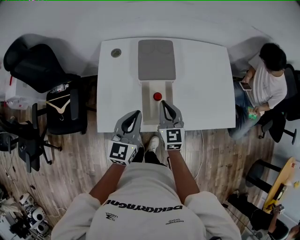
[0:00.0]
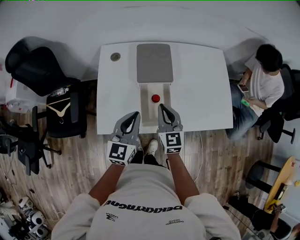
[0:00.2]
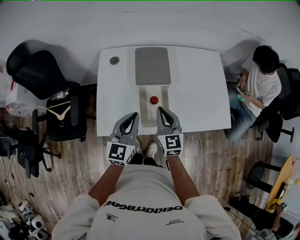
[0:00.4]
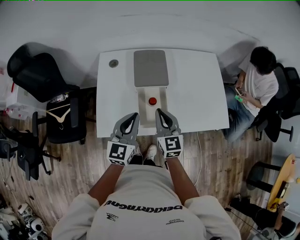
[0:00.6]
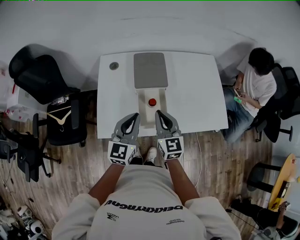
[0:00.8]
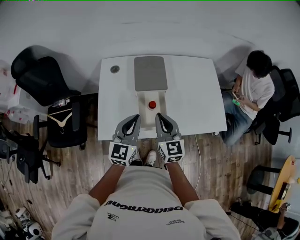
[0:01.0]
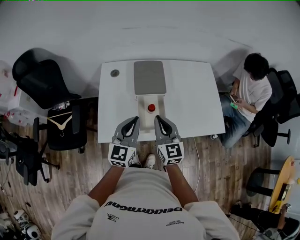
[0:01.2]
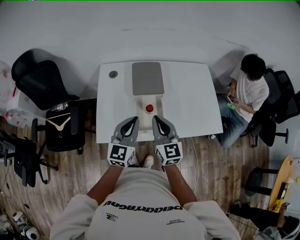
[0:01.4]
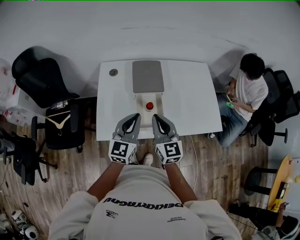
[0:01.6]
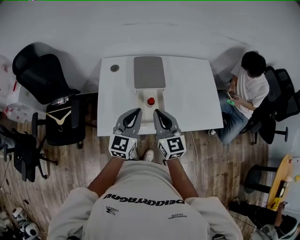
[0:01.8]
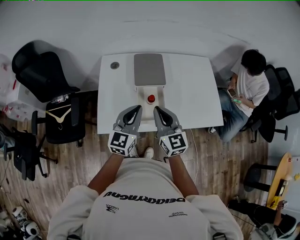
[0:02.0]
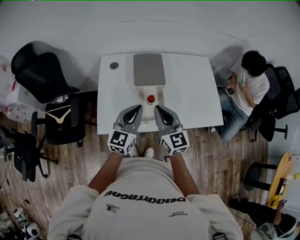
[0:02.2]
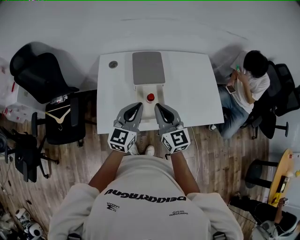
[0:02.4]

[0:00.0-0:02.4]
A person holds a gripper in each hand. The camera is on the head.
0:00.0 to 0:01.2: The left gripper goes roughly 5 cm upward; the right gripper heads upward and backward, covering roughly 10 cm.
0:01.2 to 0:02.4: The grippers stay close to where they were, moving slightly.

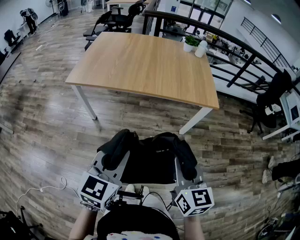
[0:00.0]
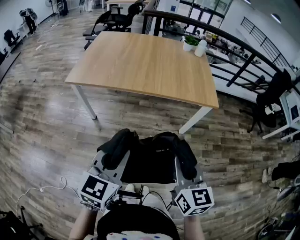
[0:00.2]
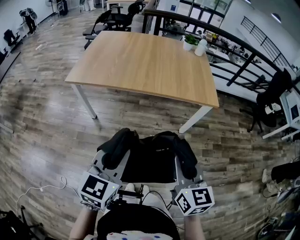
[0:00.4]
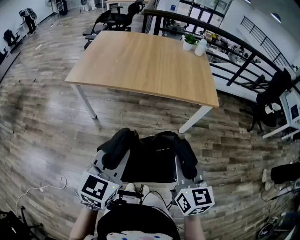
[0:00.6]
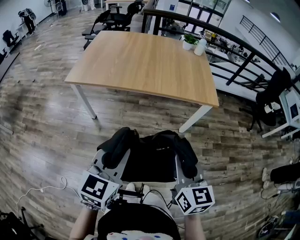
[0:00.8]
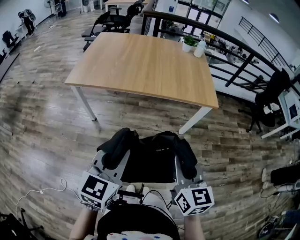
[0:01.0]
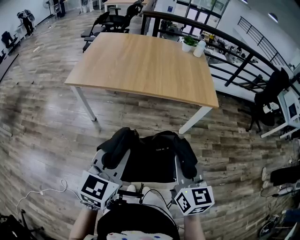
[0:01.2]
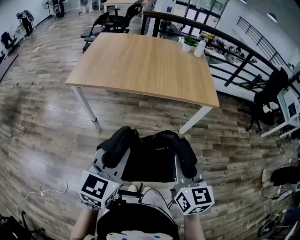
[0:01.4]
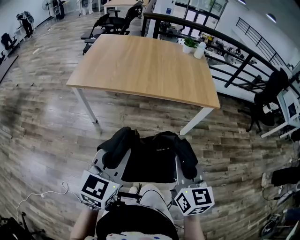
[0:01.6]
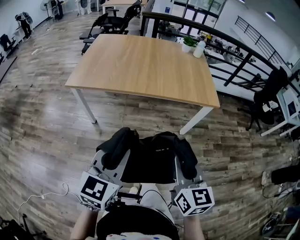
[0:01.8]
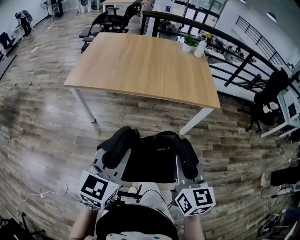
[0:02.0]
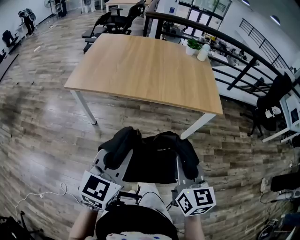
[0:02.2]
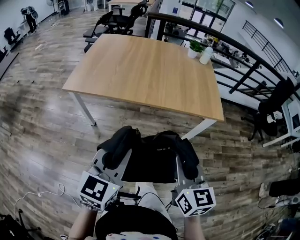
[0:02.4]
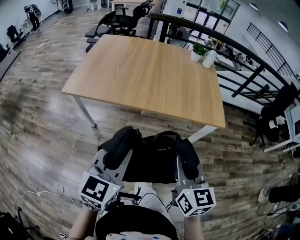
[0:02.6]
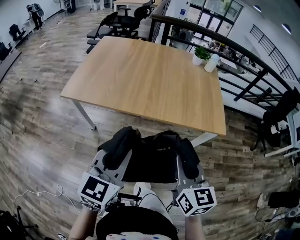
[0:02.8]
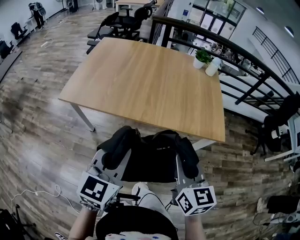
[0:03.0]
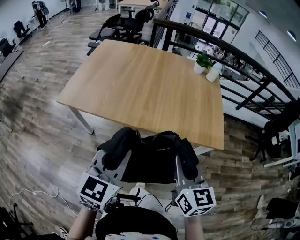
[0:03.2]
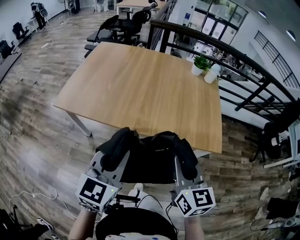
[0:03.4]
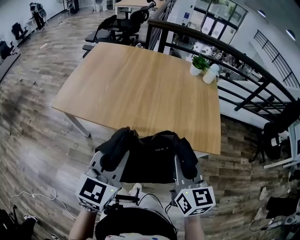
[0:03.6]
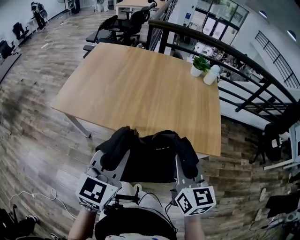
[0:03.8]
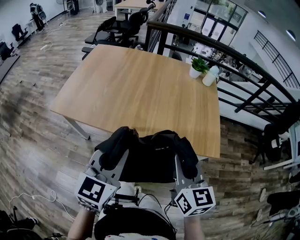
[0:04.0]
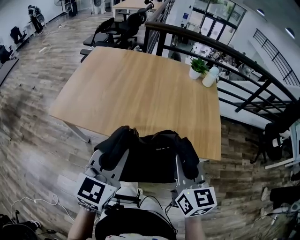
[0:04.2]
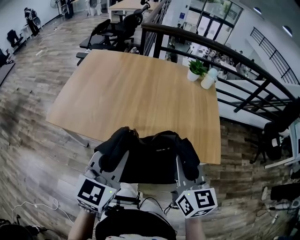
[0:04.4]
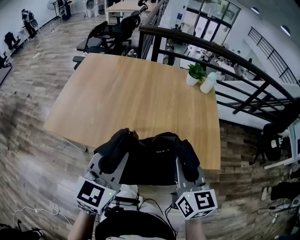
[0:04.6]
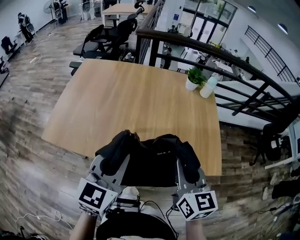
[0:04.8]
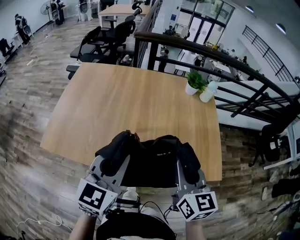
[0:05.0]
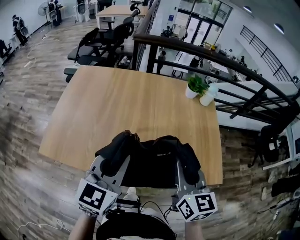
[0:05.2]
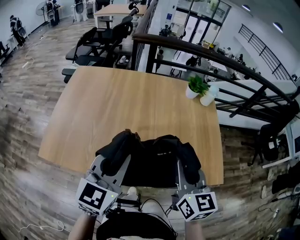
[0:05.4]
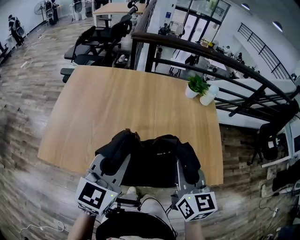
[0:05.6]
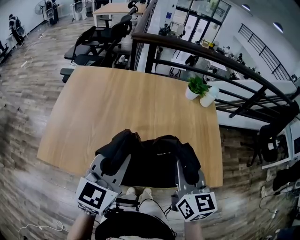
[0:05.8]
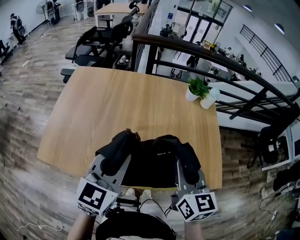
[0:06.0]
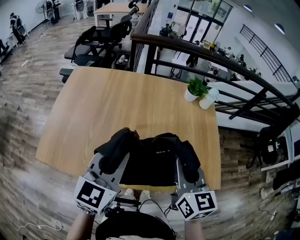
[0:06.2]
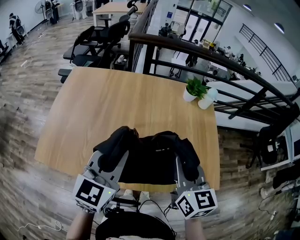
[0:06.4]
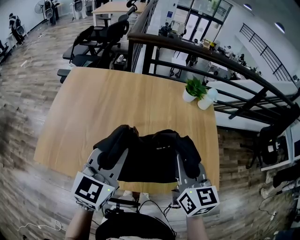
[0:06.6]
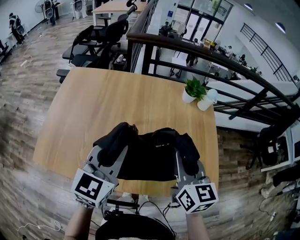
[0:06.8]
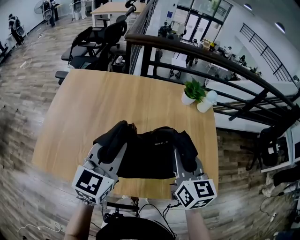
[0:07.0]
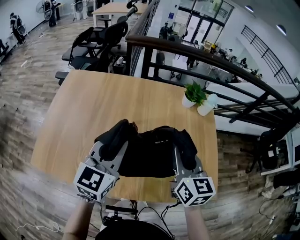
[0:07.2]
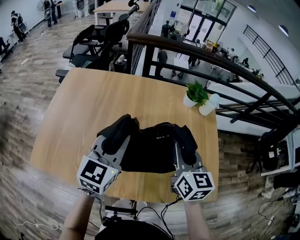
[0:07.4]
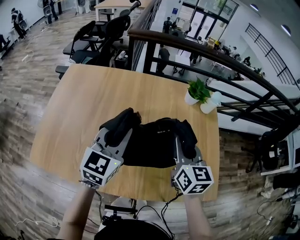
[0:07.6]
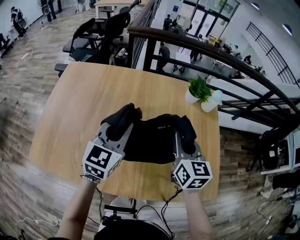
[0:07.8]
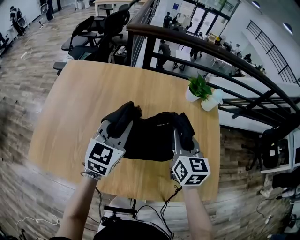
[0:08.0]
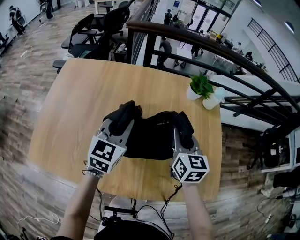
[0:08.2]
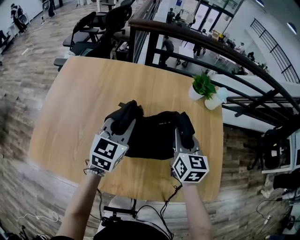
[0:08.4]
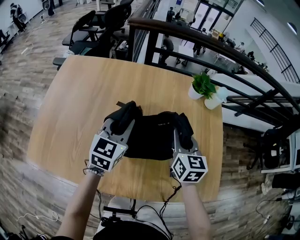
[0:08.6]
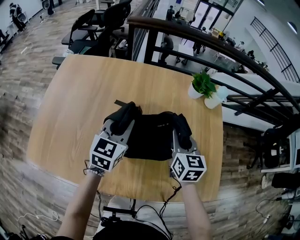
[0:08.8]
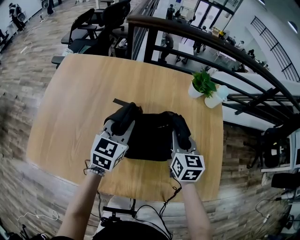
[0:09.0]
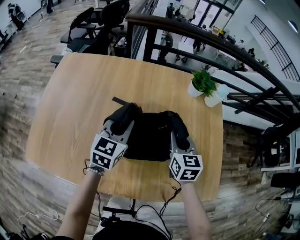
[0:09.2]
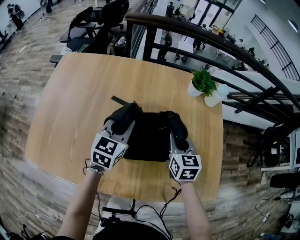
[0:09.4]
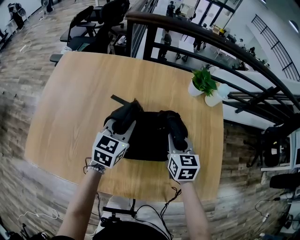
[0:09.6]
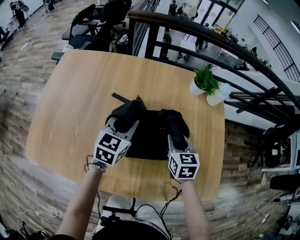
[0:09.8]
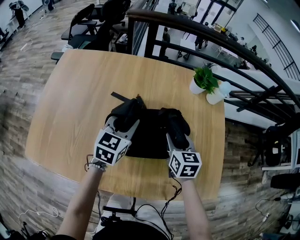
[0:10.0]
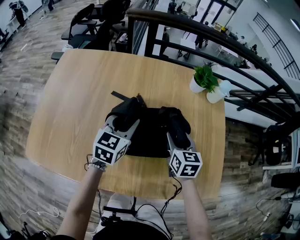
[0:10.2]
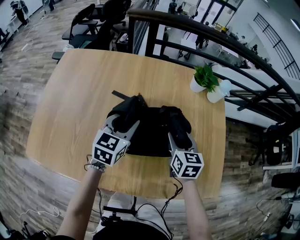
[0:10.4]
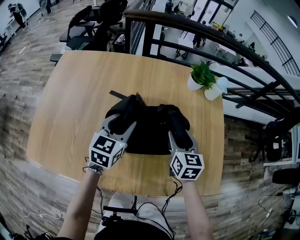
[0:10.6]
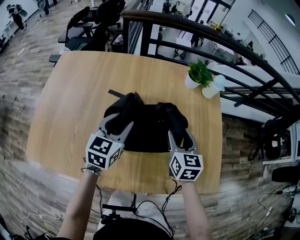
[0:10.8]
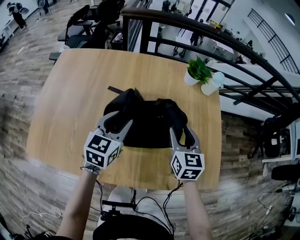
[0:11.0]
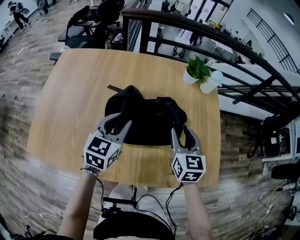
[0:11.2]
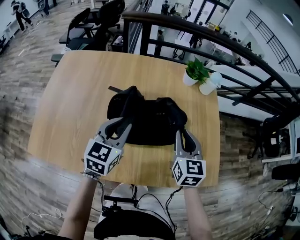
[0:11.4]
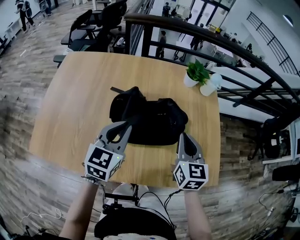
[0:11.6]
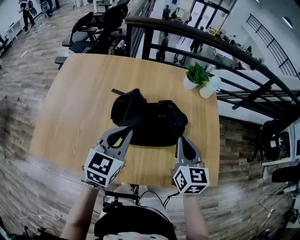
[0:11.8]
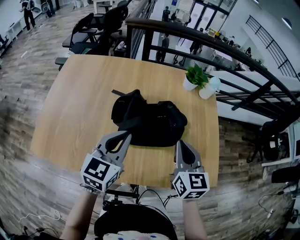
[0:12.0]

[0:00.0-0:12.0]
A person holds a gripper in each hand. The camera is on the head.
0:00.0 to 0:01.6: The grippers move only a little.
0:01.6 to 0:03.0: The grippers both shift forward by roughly 25 cm.
0:03.0 to 0:04.4: Both grippers move forward, roughly 15 cm.
0:04.4 to 0:06.0: Both grippers travel together forward, about 20 cm.
0:06.0 to 0:07.6: Both grippers travel together forward, some 15 cm.
0:07.6 to 0:09.0: The two grippers go about 10 cm downward and forward.
0:09.0 to 0:10.4: The right gripper ends up roughly 5 cm from where it was, and opens up. The left gripper opens.
0:10.4 to 0:12.0: The left gripper moves backward and upward, about 15 cm, and closes up, while the right gripper moves upward and backward, roughly 20 cm, and closes.

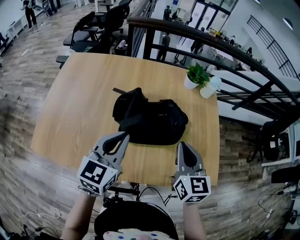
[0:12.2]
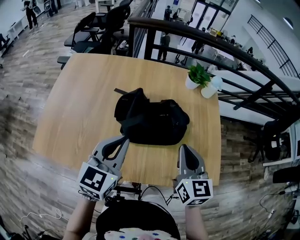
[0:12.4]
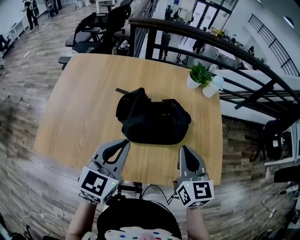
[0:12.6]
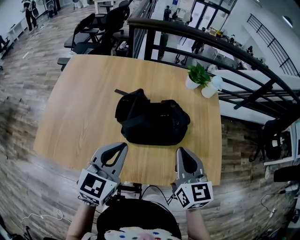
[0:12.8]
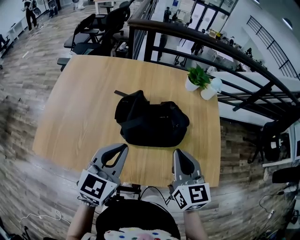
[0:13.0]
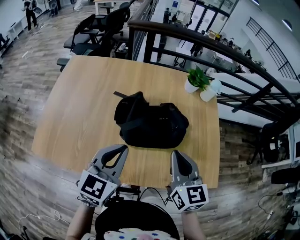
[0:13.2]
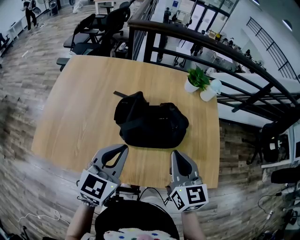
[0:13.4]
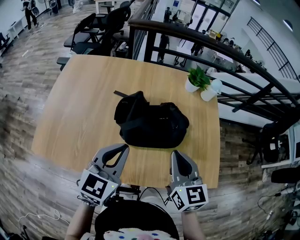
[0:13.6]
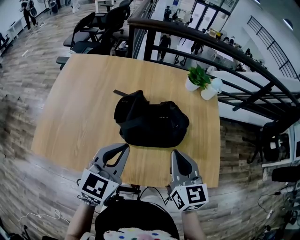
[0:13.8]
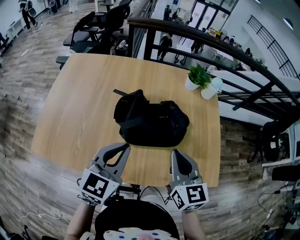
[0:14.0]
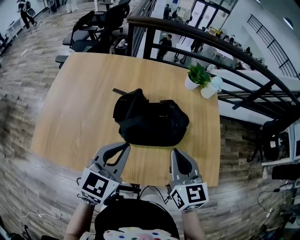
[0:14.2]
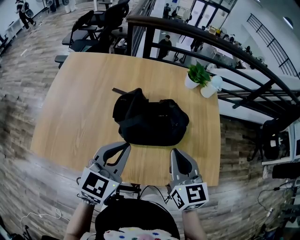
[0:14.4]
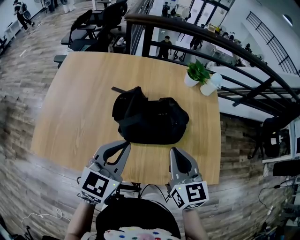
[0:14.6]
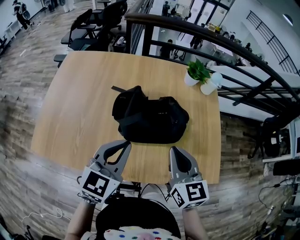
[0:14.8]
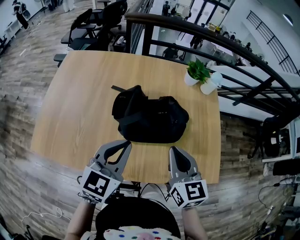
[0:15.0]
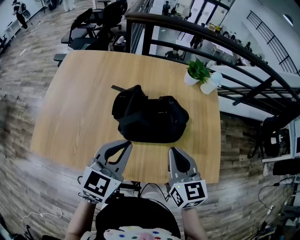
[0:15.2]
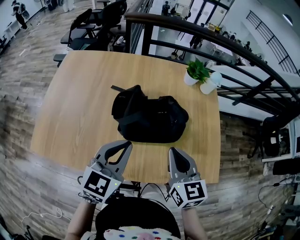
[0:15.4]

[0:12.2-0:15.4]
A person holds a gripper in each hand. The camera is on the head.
0:12.2 to 0:15.4: The grippers stay close to where they were, moving slightly.

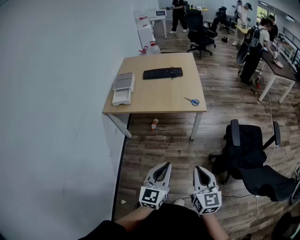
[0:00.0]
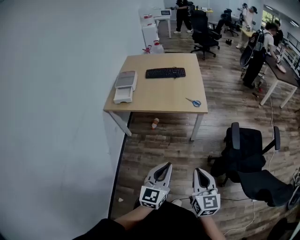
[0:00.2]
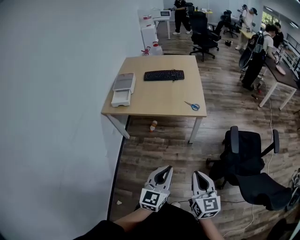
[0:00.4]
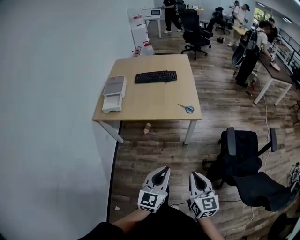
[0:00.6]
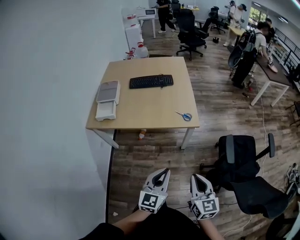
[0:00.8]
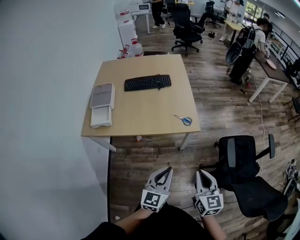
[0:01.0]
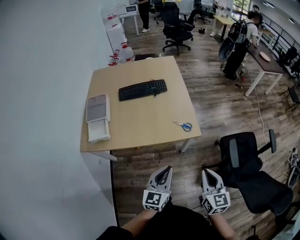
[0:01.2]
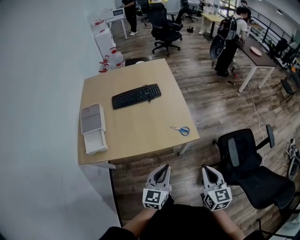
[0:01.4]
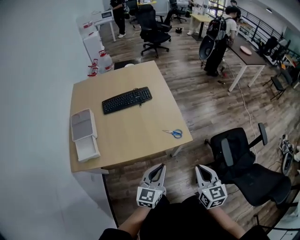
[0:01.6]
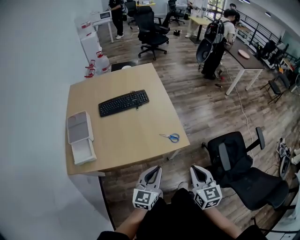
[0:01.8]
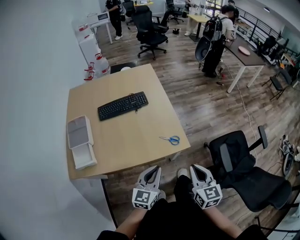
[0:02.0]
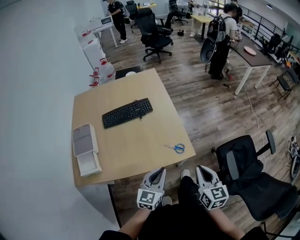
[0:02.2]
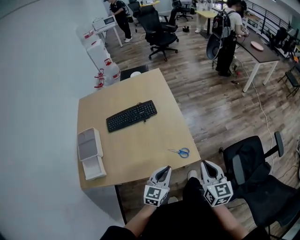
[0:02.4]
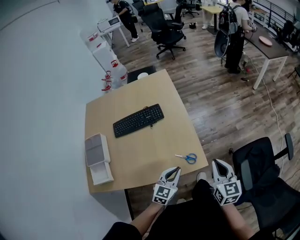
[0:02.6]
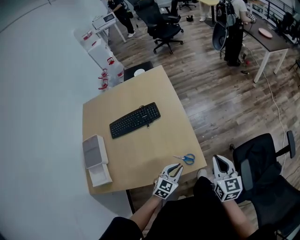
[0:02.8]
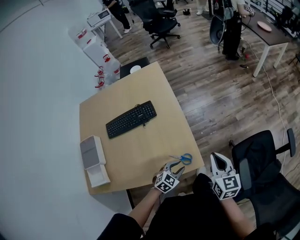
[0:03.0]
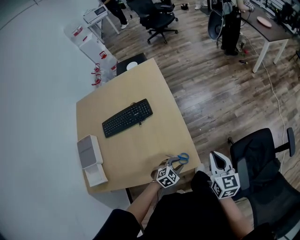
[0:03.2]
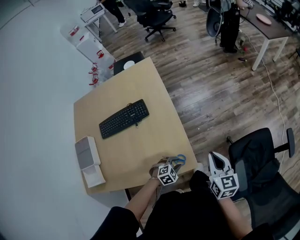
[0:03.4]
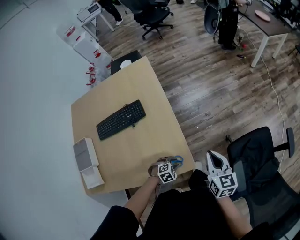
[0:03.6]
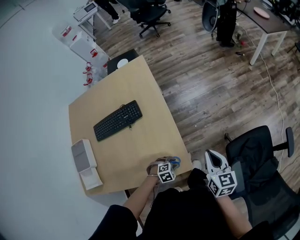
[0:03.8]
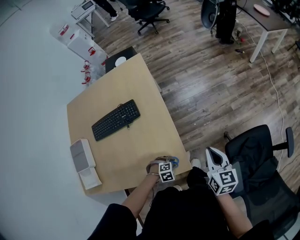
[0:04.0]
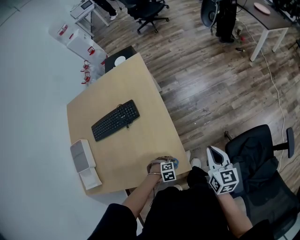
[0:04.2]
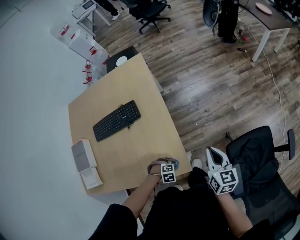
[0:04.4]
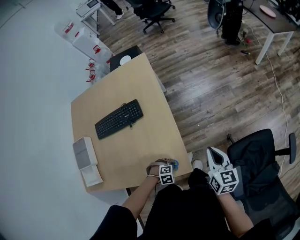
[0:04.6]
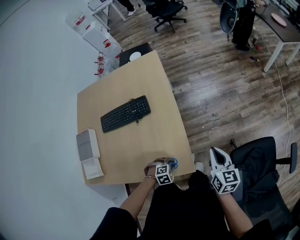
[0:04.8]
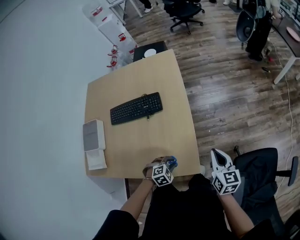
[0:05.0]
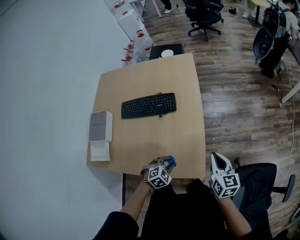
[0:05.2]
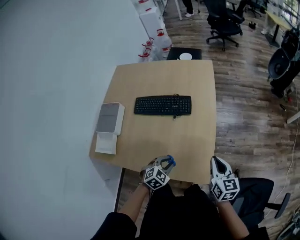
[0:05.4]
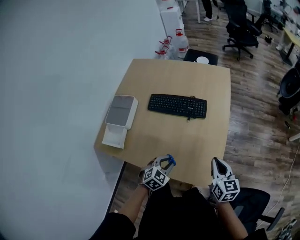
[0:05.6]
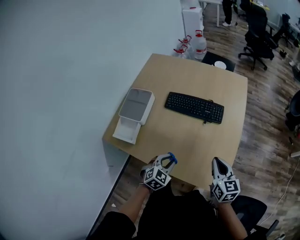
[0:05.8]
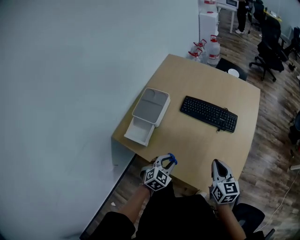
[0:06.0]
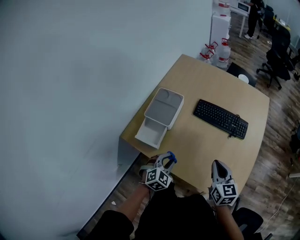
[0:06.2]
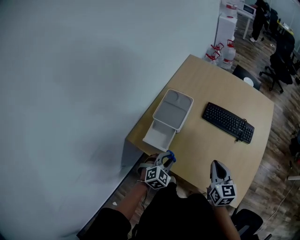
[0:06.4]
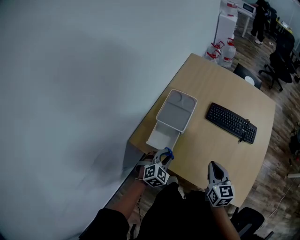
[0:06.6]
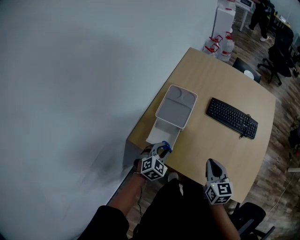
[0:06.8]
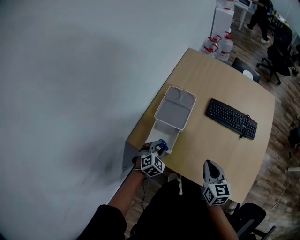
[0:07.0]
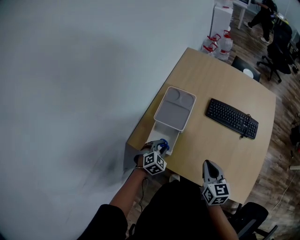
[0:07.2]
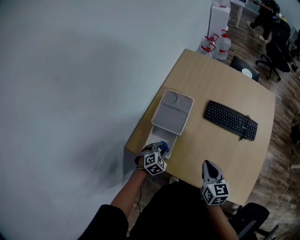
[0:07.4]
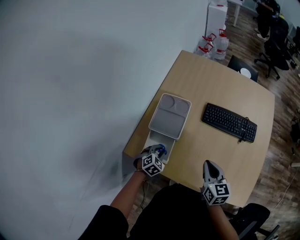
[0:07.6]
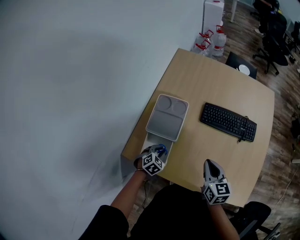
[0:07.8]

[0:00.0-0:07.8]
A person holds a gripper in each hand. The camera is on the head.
0:00.0 to 0:01.6: The grippers both shift forward by some 35 cm. The left gripper changes its angle by some 20 degrees.
0:01.6 to 0:03.2: The right gripper heads forward, covering roughly 30 cm; the left gripper moves downward, forward and to the right, about 35 cm, points its fingers about 50 degrees further downward, and opens its fingers.
0:03.2 to 0:04.6: The right gripper ends up about 10 cm from where it was. The left gripper is displaced downward by approximately 10 cm, and swivels some 30 degrees.
0:04.6 to 0:06.2: Both grippers are carried roughly 50 cm. The right gripper swivels approximately 40 degrees. The left gripper angles its fingers upward, by about 40 degrees.
0:06.2 to 0:07.8: The right gripper heads to the left and forward, covering roughly 15 cm; the left gripper moves to the left, downward and forward, some 25 cm.
